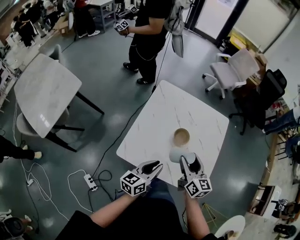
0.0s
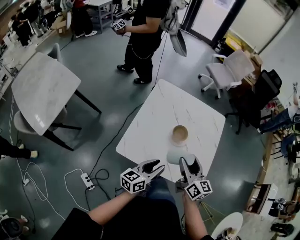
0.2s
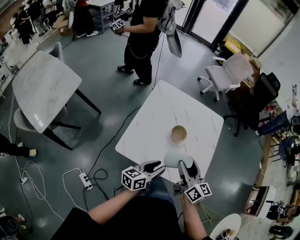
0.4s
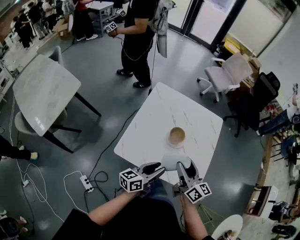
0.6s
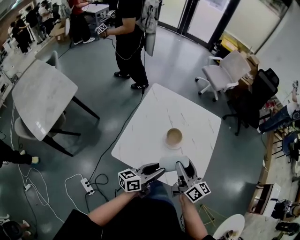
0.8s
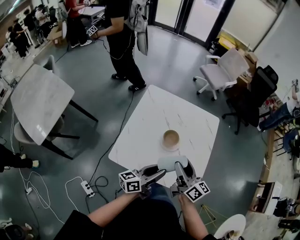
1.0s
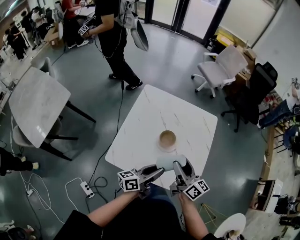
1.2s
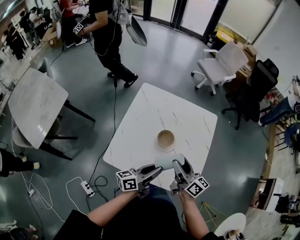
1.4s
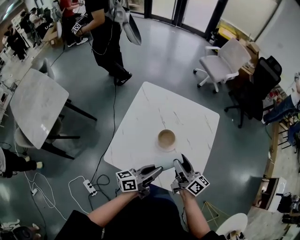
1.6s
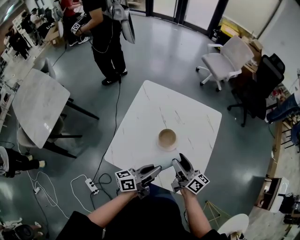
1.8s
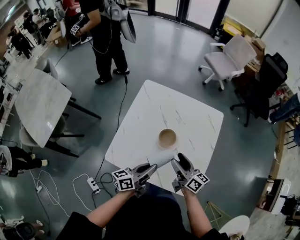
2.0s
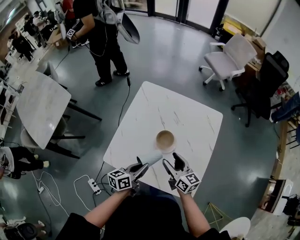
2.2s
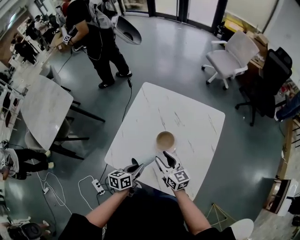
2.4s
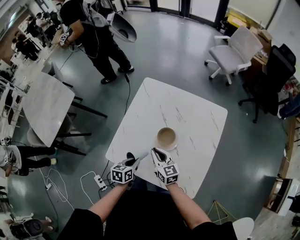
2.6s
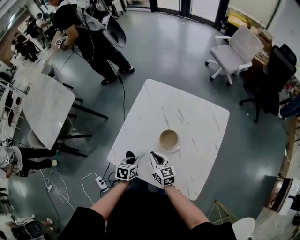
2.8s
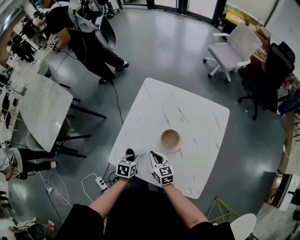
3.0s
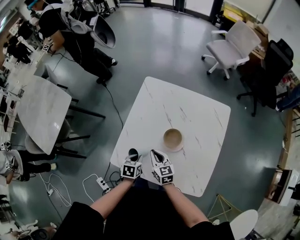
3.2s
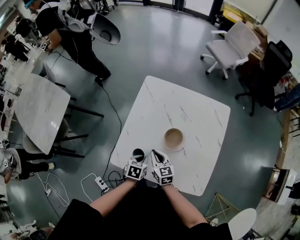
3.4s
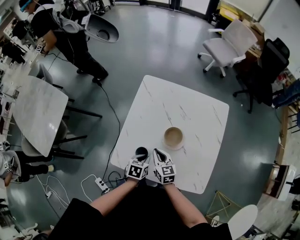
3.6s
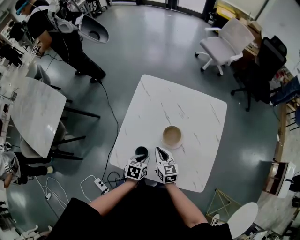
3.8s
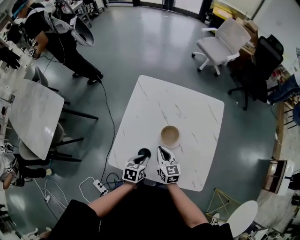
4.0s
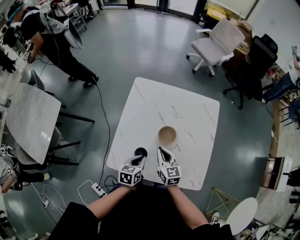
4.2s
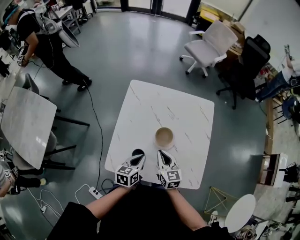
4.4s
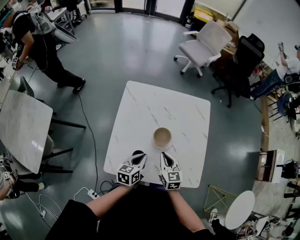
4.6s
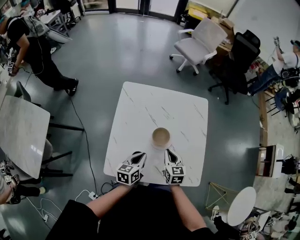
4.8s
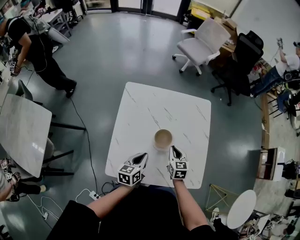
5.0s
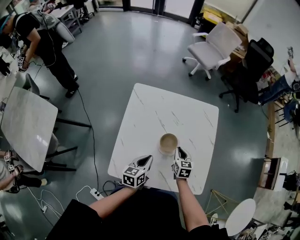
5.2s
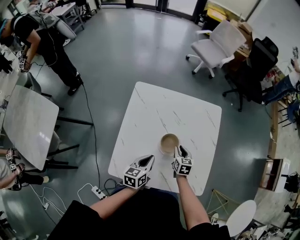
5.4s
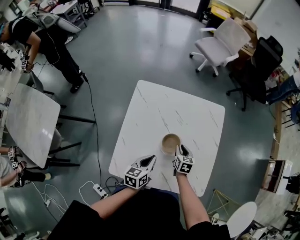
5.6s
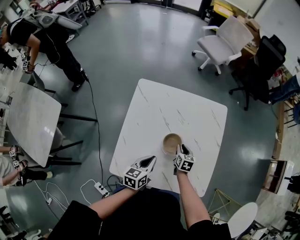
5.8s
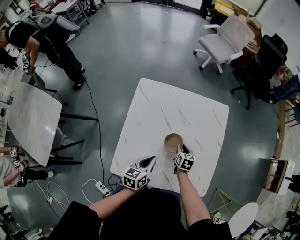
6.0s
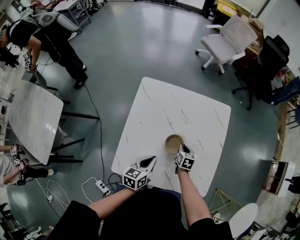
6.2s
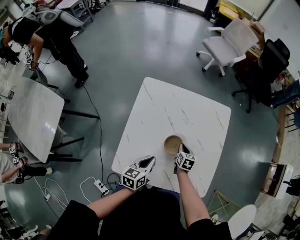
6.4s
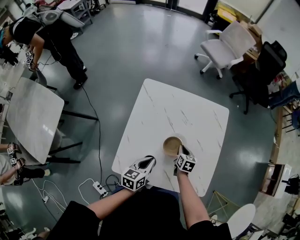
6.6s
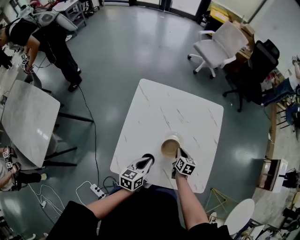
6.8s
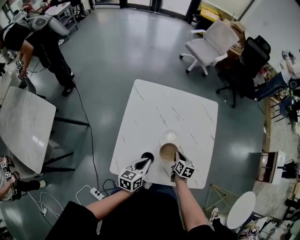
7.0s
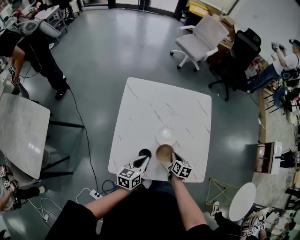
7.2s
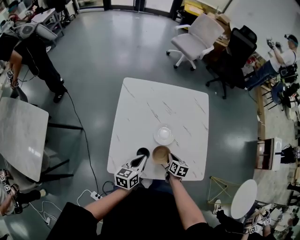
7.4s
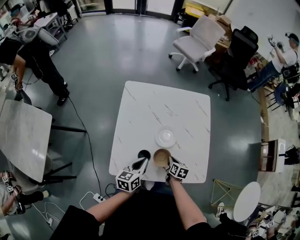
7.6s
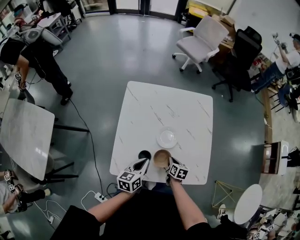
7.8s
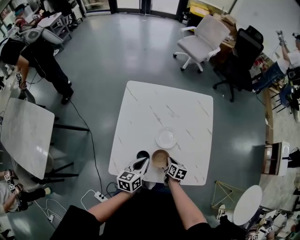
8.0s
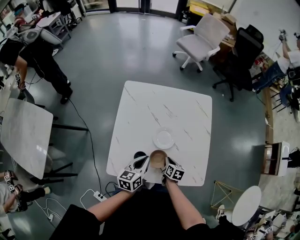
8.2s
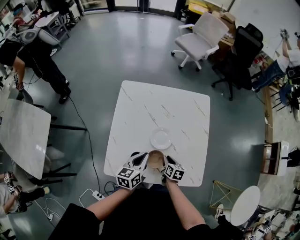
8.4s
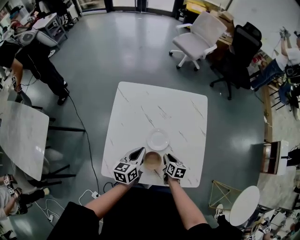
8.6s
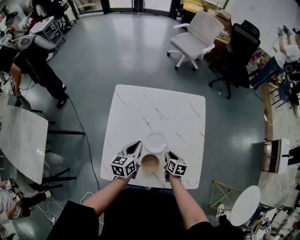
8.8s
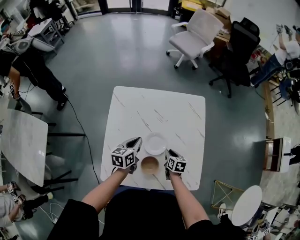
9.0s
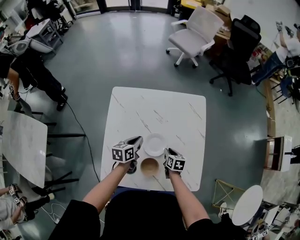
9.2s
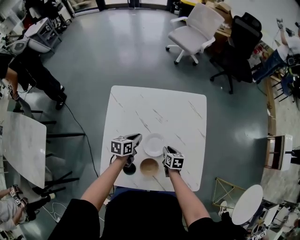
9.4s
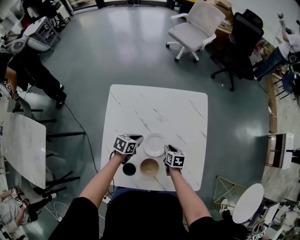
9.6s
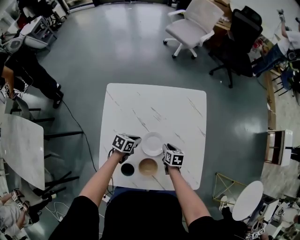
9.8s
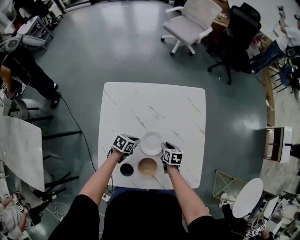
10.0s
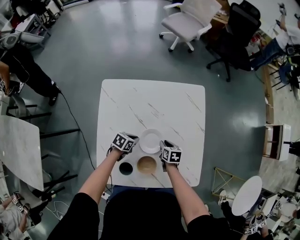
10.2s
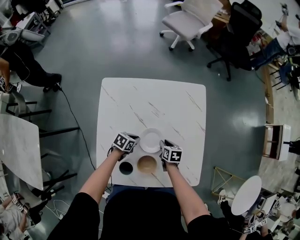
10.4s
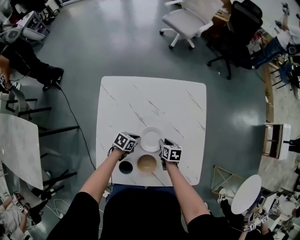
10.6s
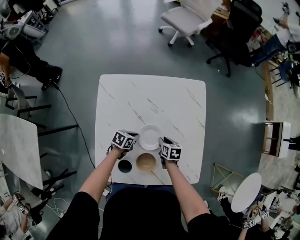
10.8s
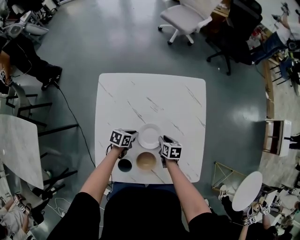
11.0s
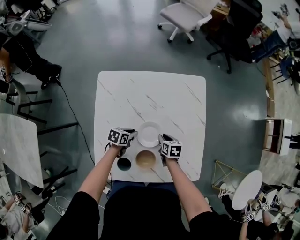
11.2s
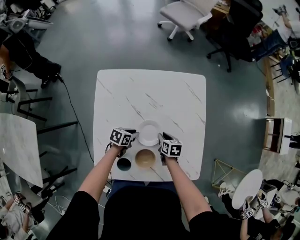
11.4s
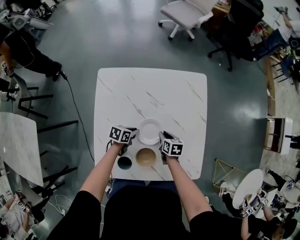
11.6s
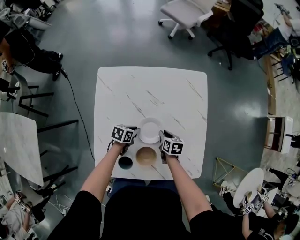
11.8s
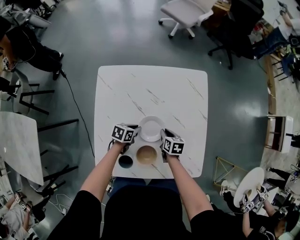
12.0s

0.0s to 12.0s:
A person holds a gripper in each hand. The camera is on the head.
0.0s to 1.6s: The two grippers go about 10 cm to the right. The left gripper swivels roughly 30 degrees, and opens, then closes once more; the right gripper goes backward and returns, approximately 5 cm each way, and rotates roughly 30 degrees.
1.6s to 3.0s: The grippers both shift downward and to the left by approximately 25 cm. The right gripper swivels roughly 40 degrees, and closes its fingers; the left gripper angles its fingers downward, by some 60 degrees.
3.0s to 4.4s: Both grippers move upward, some 10 cm. The right gripper swivels approximately 20 degrees. Meanwhile the left gripper swivels approximately 30 degrees.
4.4s to 6.0s: The right gripper moves downward, forward and to the right, approximately 20 cm, and turns by about 30 degrees; the left gripper shifts by roughly 5 cm.
6.0s to 7.6s: The left gripper shifts about 5 cm backward. The right gripper heads backward, covering roughly 15 cm.
7.6s to 9.0s: The left gripper travels forward by some 15 cm. Meanwhile the right gripper travels forward by about 10 cm.
9.0s to 10.4s: The right gripper changes place by some 5 cm; the left gripper shifts roughly 20 cm downward, and rotates about 40 degrees.
10.4s to 12.0s: There are only small adjustments of the grippers.

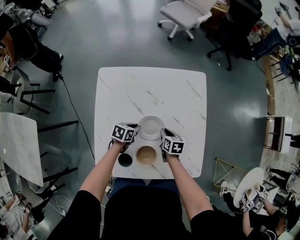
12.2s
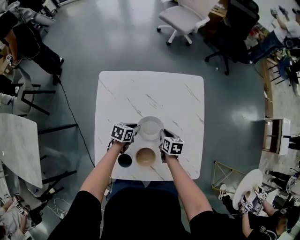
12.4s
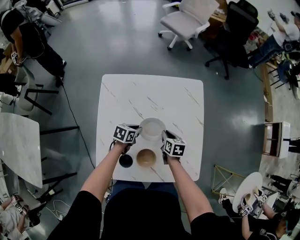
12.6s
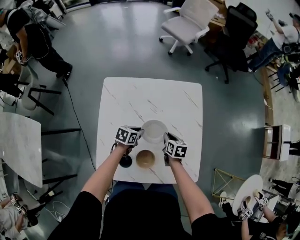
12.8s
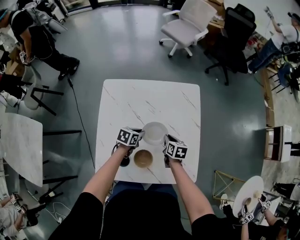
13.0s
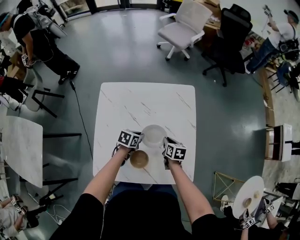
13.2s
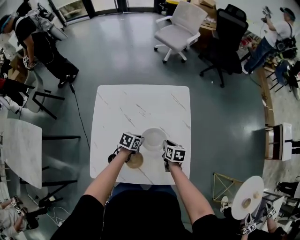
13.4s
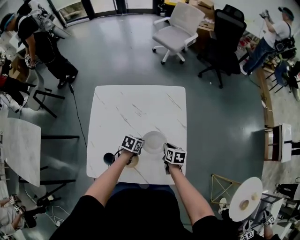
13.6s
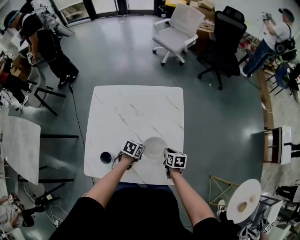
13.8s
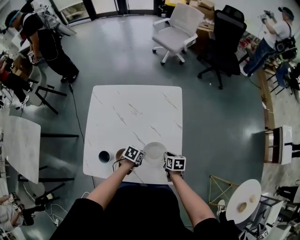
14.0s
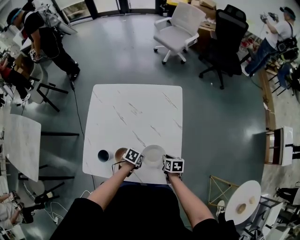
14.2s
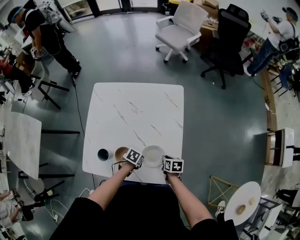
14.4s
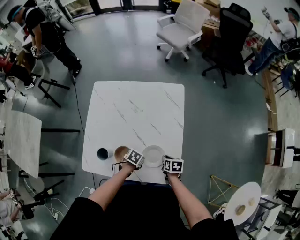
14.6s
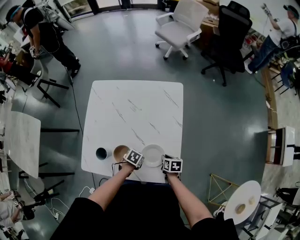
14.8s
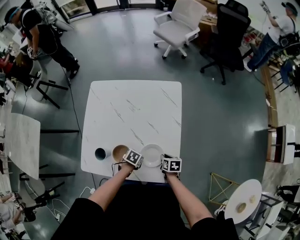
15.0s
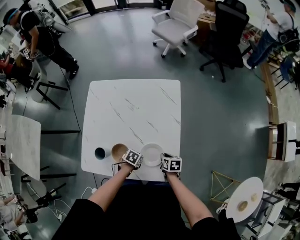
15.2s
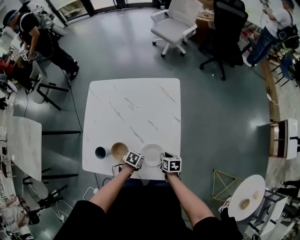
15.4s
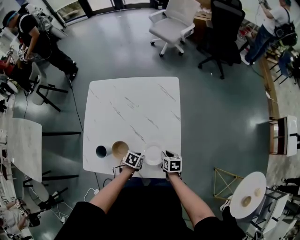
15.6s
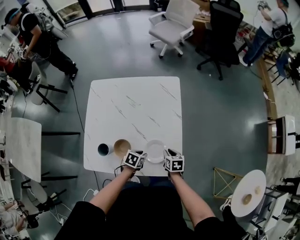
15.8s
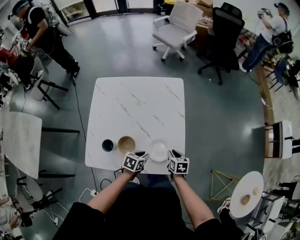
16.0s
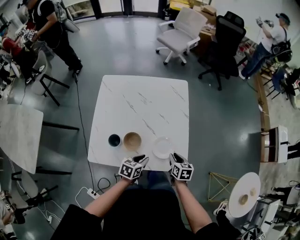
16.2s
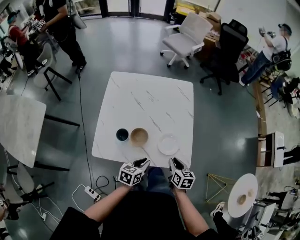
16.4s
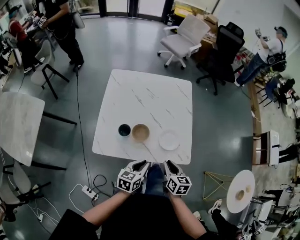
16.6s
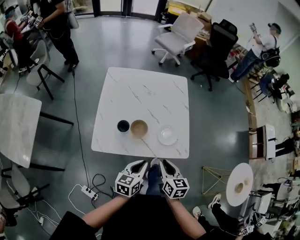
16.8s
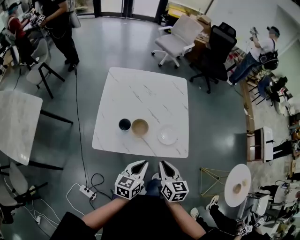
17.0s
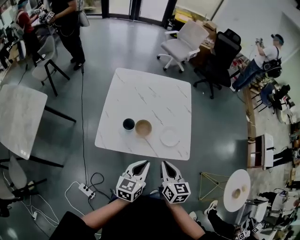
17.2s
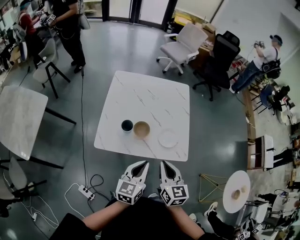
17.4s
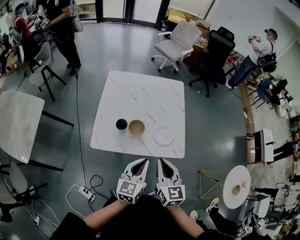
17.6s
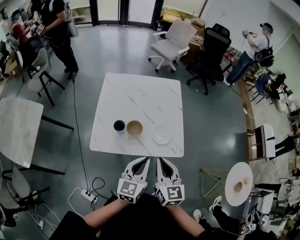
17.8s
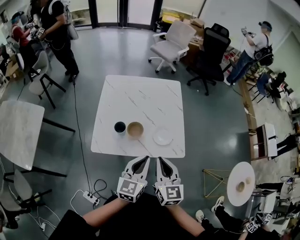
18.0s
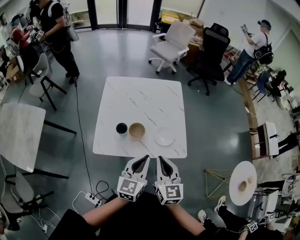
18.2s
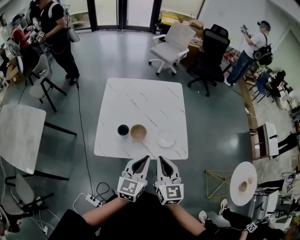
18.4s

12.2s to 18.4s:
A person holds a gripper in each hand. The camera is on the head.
12.2s to 13.8s: The two grippers go about 20 cm to the right.
13.8s to 15.4s: The left gripper shifts by approximately 10 cm; the right gripper shifts by approximately 10 cm.
15.4s to 16.8s: The left gripper heads upward, covering roughly 20 cm, and tips its fingers upward by about 40 degrees, while the right gripper ends up about 35 cm from where it was, and swivels some 30 degrees.
16.8s to 18.4s: The grippers both shift upward by roughly 15 cm. The left gripper swivels about 30 degrees, while the right gripper swivels about 30 degrees.

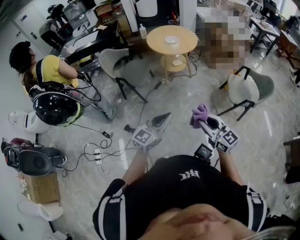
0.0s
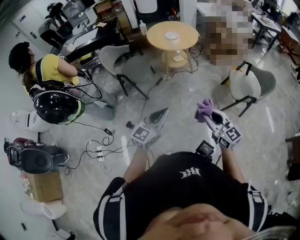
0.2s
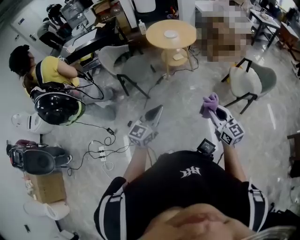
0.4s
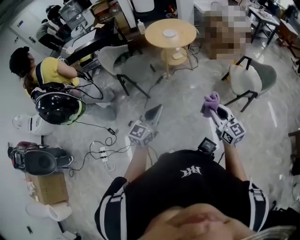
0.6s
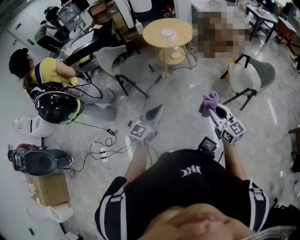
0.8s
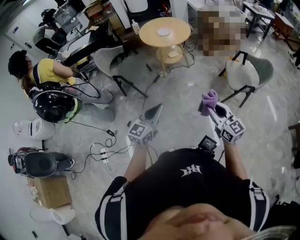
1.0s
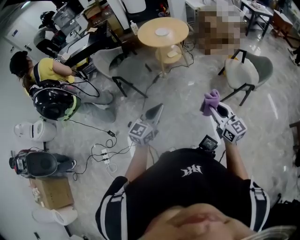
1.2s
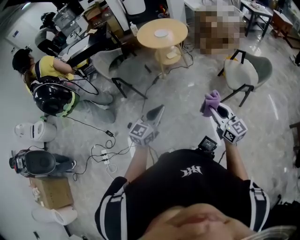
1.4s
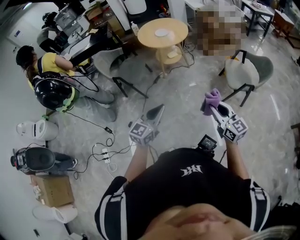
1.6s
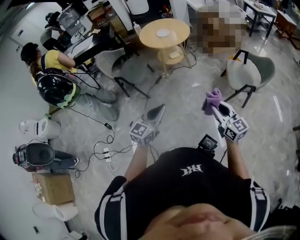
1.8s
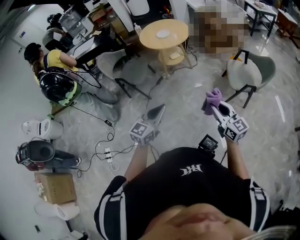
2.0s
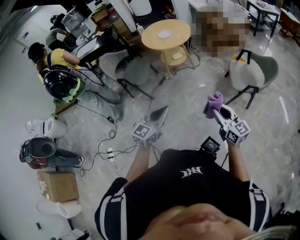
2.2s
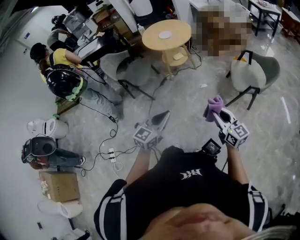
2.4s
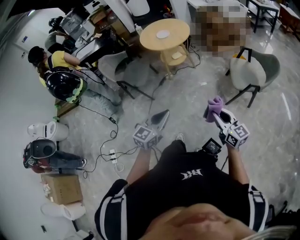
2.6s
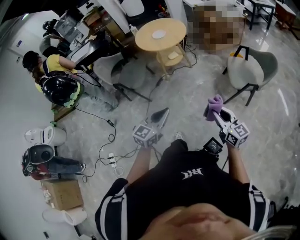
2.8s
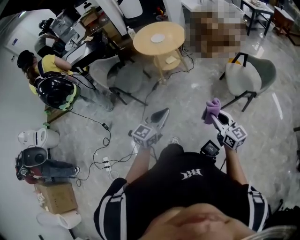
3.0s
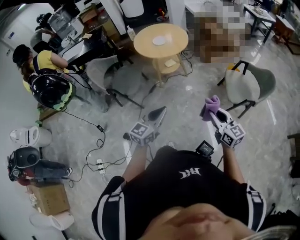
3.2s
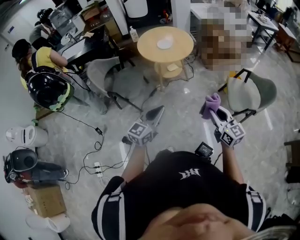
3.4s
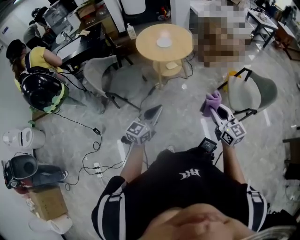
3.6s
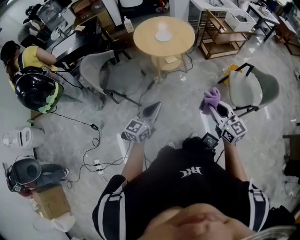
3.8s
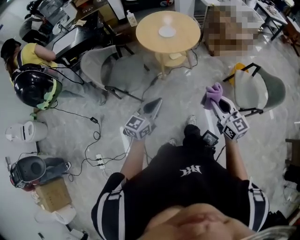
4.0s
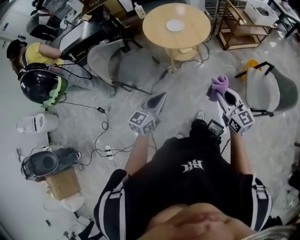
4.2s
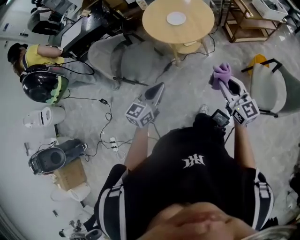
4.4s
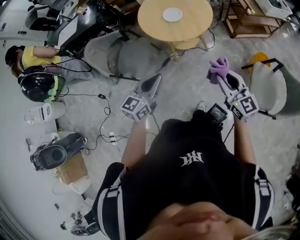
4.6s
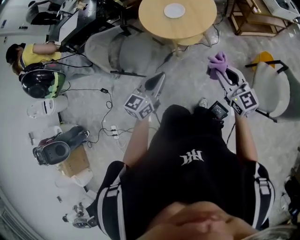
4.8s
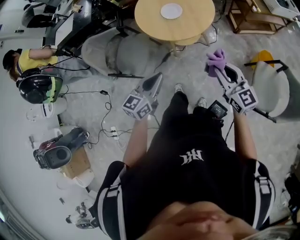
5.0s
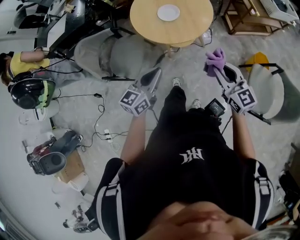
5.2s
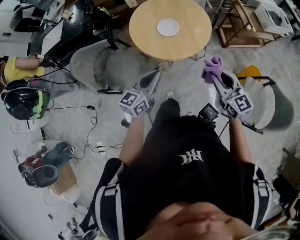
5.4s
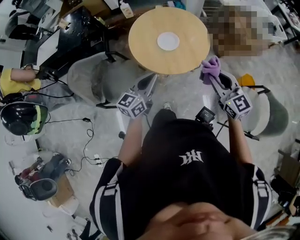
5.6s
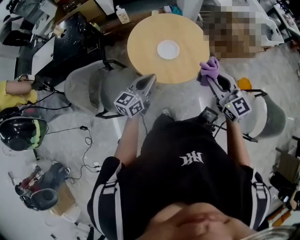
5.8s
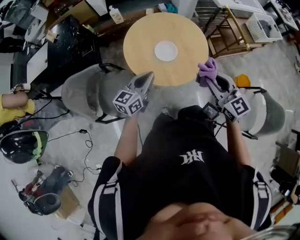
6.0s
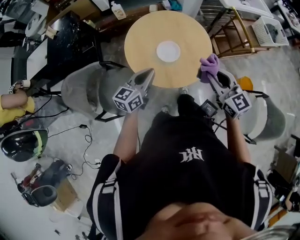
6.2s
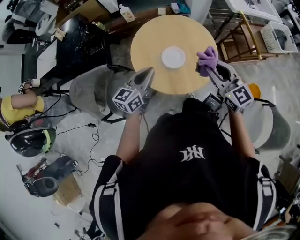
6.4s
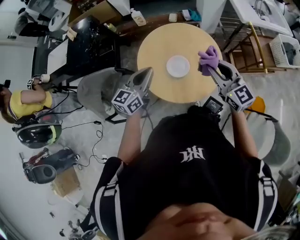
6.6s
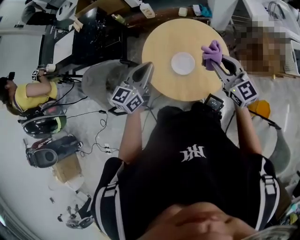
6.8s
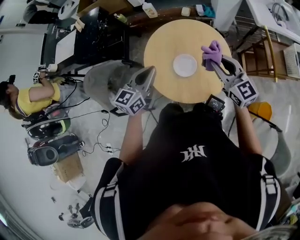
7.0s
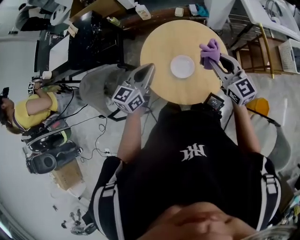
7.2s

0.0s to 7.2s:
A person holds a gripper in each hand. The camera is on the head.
0.0s to 1.4s: The right gripper goes some 10 cm to the right.
1.4s to 2.8s: The right gripper is displaced downward and to the right by about 10 cm; the left gripper goes about 5 cm to the right.
2.8s to 4.4s: Both grippers move forward, roughly 35 cm.
4.4s to 5.8s: The two grippers go approximately 30 cm forward.
5.8s to 7.2s: Both grippers travel together forward, about 20 cm.
